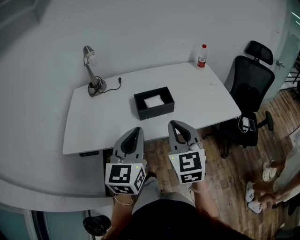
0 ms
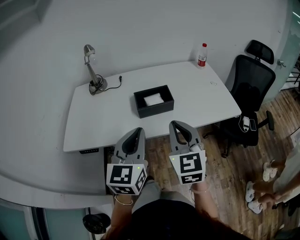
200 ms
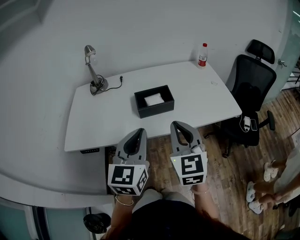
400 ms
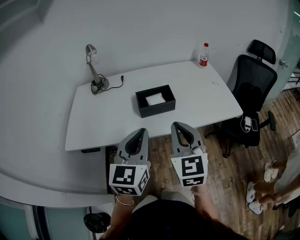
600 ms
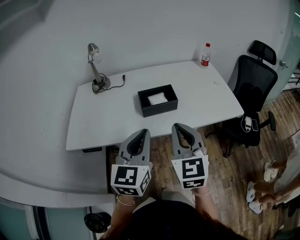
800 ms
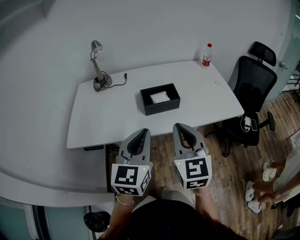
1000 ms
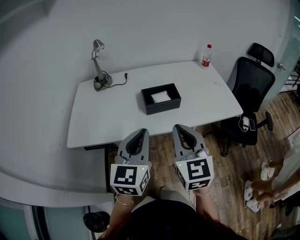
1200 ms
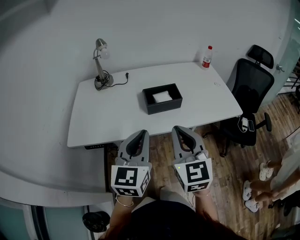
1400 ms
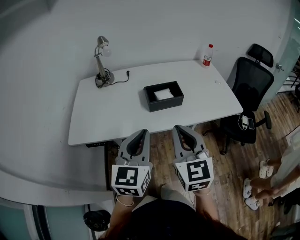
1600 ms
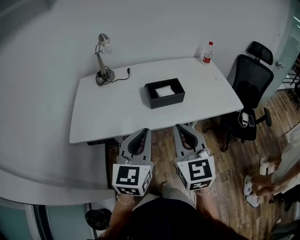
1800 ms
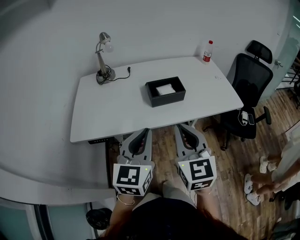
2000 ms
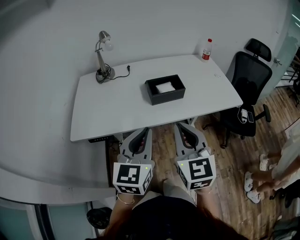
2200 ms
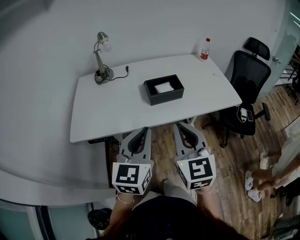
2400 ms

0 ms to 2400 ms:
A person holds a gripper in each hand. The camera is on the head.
0 ms to 1200 ms: The right gripper changes place by some 5 cm.
1200 ms to 2400 ms: The right gripper changes place by approximately 5 cm, while the left gripper shifts by some 5 cm.

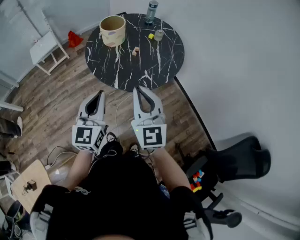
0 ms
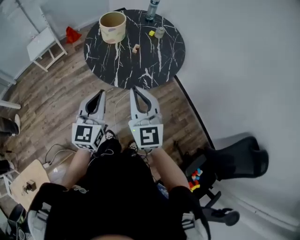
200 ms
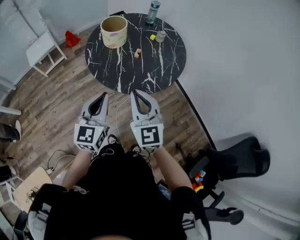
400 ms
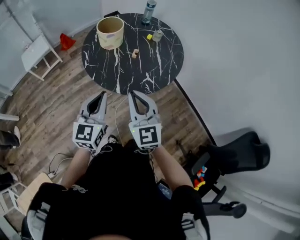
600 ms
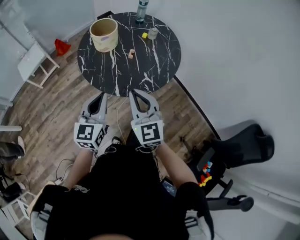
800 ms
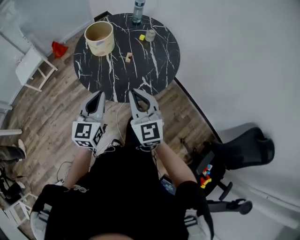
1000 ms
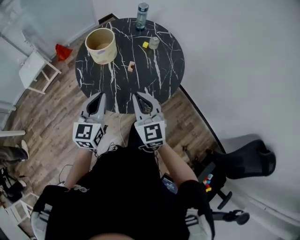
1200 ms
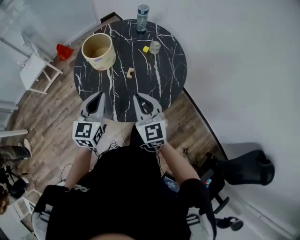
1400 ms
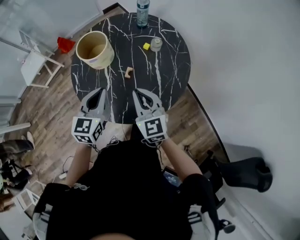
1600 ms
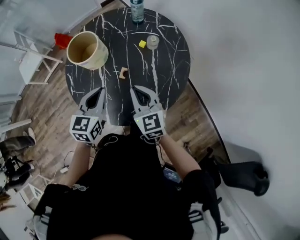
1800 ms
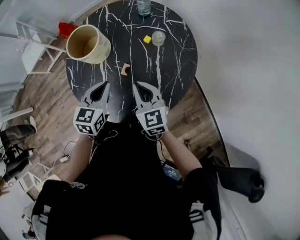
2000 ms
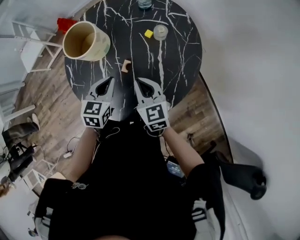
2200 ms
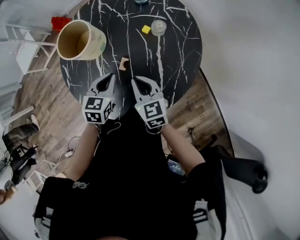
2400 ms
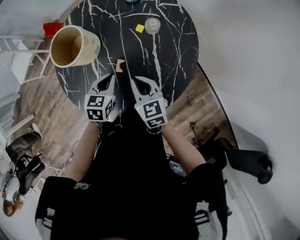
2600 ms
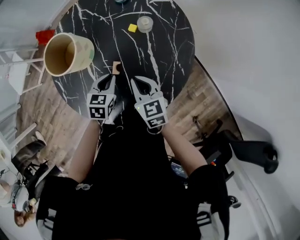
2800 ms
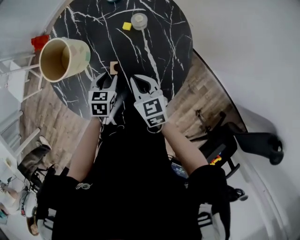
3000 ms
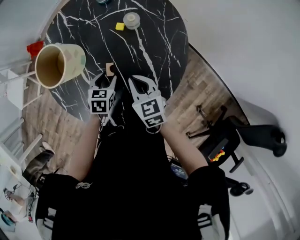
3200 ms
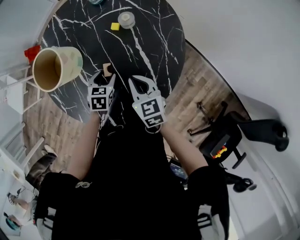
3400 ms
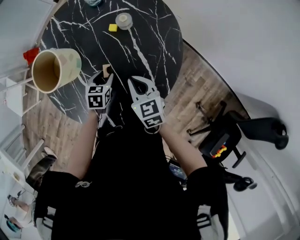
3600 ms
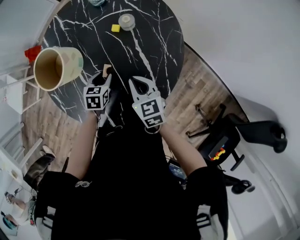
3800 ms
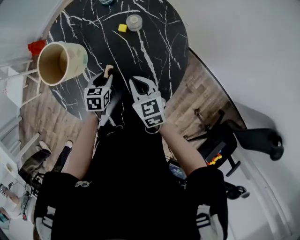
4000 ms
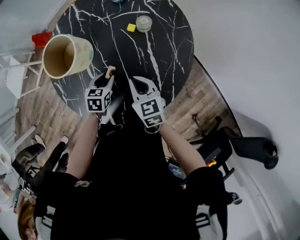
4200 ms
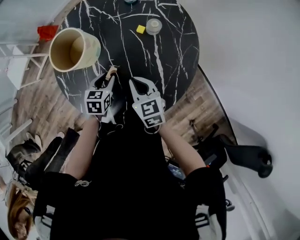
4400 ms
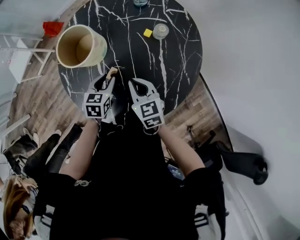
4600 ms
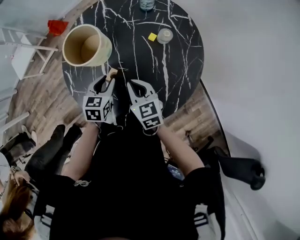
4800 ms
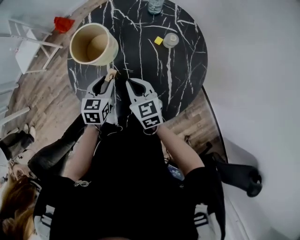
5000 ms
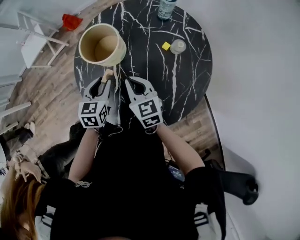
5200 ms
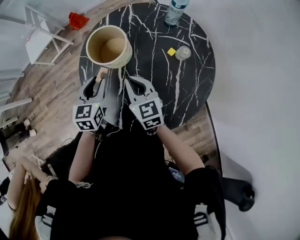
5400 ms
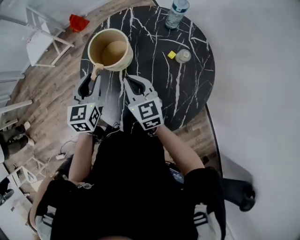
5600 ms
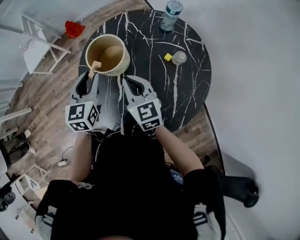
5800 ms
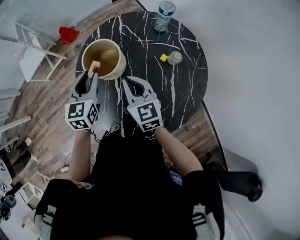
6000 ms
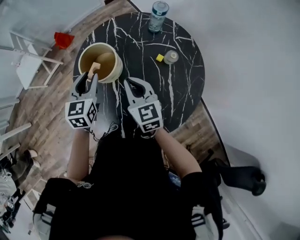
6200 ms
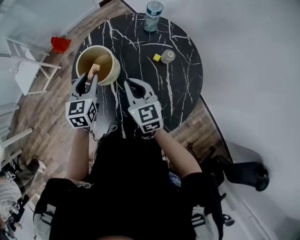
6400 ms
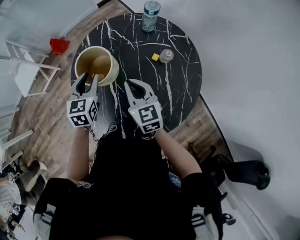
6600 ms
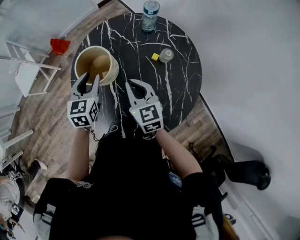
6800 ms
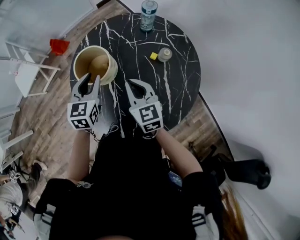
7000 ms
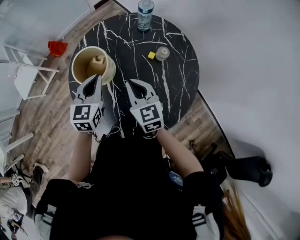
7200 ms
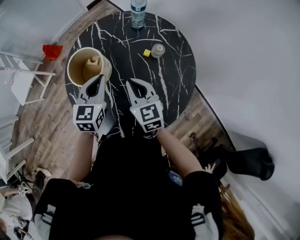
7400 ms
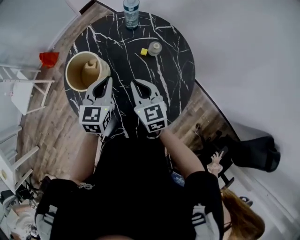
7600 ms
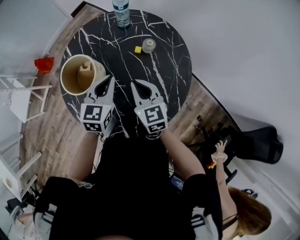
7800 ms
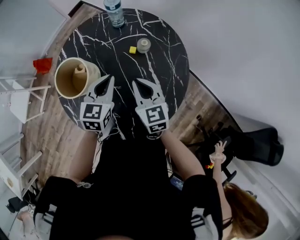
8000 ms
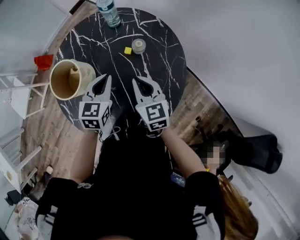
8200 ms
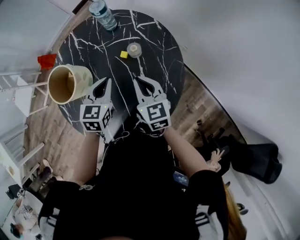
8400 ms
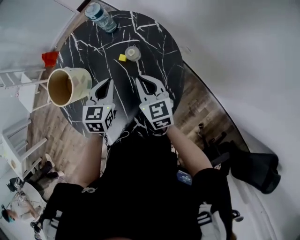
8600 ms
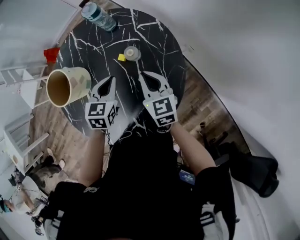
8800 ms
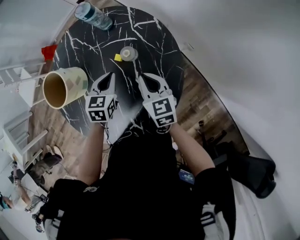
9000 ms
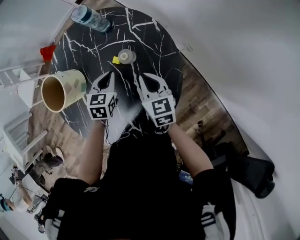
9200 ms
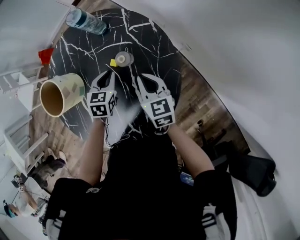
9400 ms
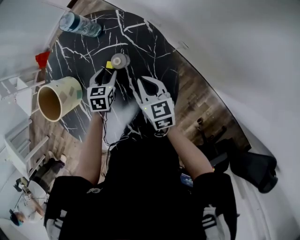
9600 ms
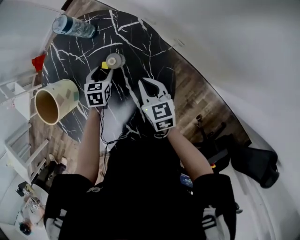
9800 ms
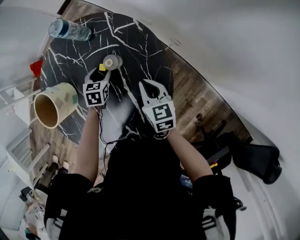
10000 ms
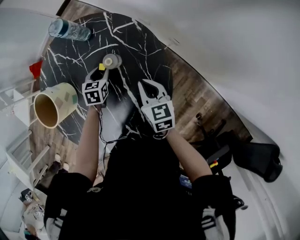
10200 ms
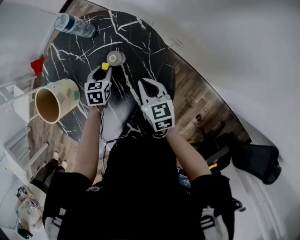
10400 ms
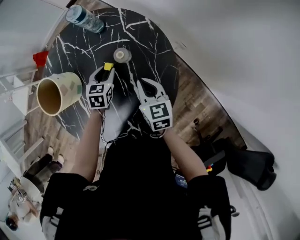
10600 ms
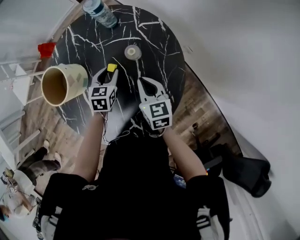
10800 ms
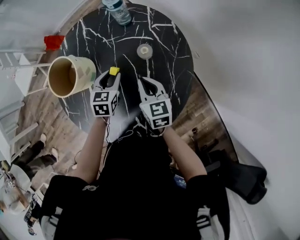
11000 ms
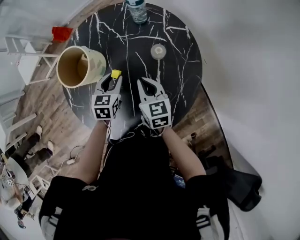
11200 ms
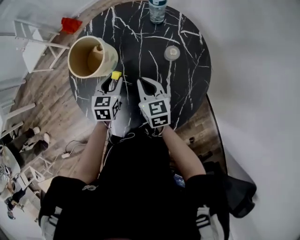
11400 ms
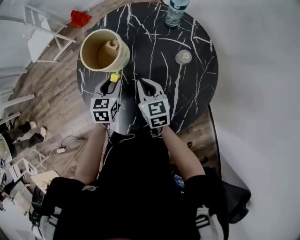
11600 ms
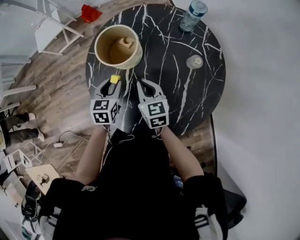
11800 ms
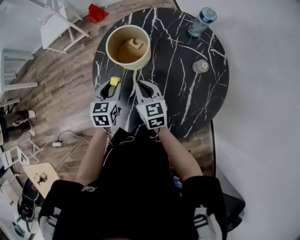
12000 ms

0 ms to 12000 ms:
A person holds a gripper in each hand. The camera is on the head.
0 ms to 1600 ms: The right gripper heads forward and downward, covering about 35 cm, while the left gripper shifts roughly 30 cm forward.
1600 ms to 3000 ms: The two grippers go approximately 20 cm downward and forward. The right gripper turns by roughly 30 degrees. The left gripper angles its fingers downward, by about 30 degrees, and opens up.
3000 ms to 4400 ms: The left gripper goes about 5 cm to the left.
4400 ms to 6000 ms: The left gripper travels upward, to the left and forward by some 25 cm, and swivels about 30 degrees. The right gripper goes roughly 20 cm upward, forward and to the left.
6000 ms to 7600 ms: The left gripper moves to the right, roughly 15 cm, changes its angle by approximately 30 degrees, and closes up, while the right gripper heads to the right, covering some 10 cm.
7600 ms to 9000 ms: The left gripper goes some 20 cm to the right, downward and forward. Meanwhile the right gripper goes about 25 cm to the right, forward and downward.
9000 ms to 10400 ms: The left gripper travels downward by some 10 cm, and opens its fingers.
10400 ms to 12000 ms: The right gripper changes place by about 35 cm, and swivels some 30 degrees. The left gripper changes place by some 40 cm, and turns by approximately 40 degrees.

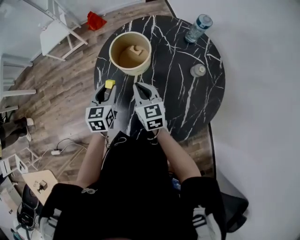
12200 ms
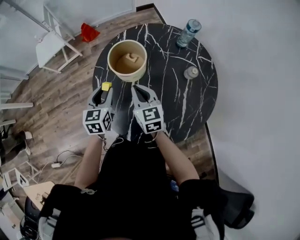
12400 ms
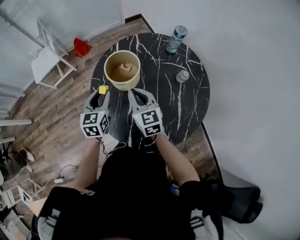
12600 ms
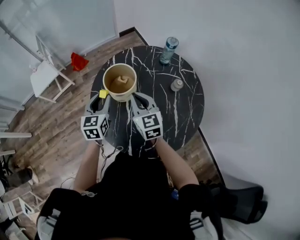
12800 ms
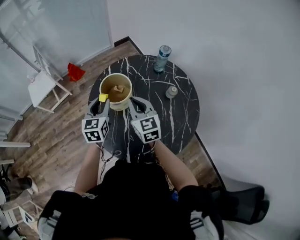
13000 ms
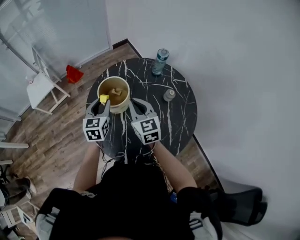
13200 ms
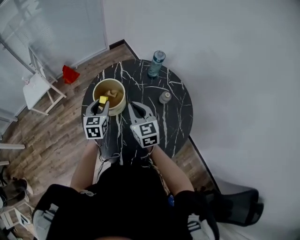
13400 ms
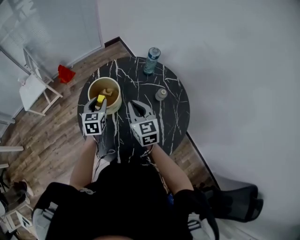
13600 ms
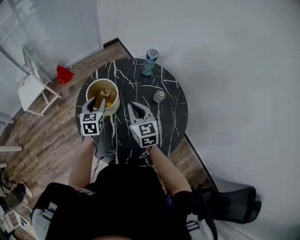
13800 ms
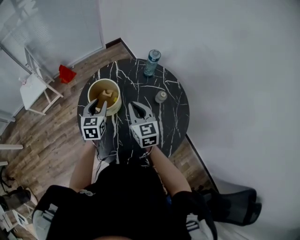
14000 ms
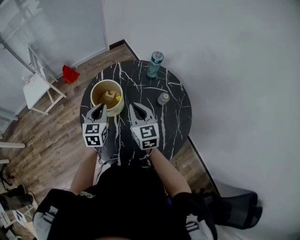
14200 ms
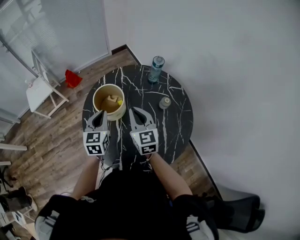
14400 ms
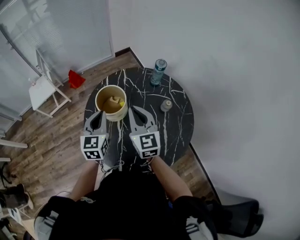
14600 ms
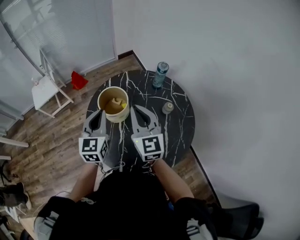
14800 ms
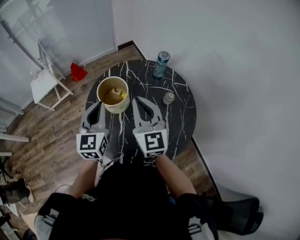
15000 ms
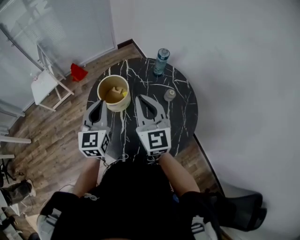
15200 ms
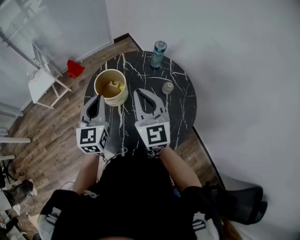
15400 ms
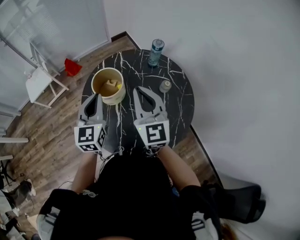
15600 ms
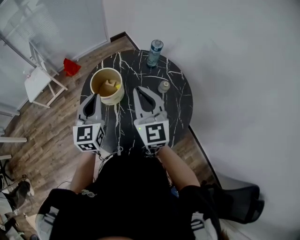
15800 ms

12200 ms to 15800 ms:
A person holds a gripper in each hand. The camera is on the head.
12200 ms to 14000 ms: The right gripper heads upward and to the right, covering roughly 15 cm, while the left gripper moves forward, upward and to the right, approximately 15 cm.
14000 ms to 15800 ms: The left gripper travels upward and backward by approximately 15 cm, and closes. The right gripper goes about 15 cm upward, and changes its angle by some 20 degrees.

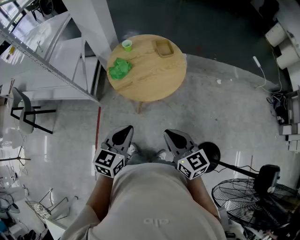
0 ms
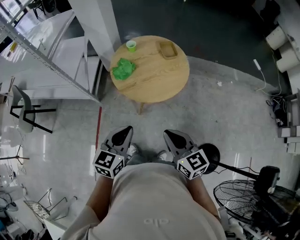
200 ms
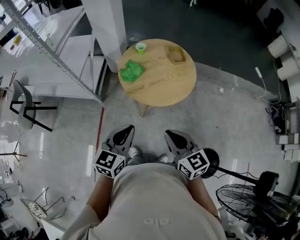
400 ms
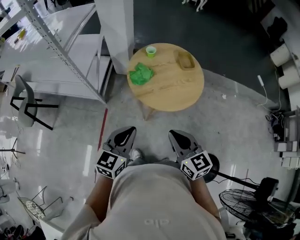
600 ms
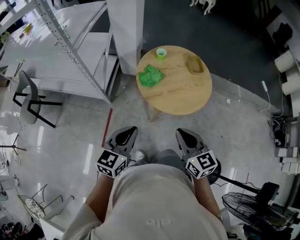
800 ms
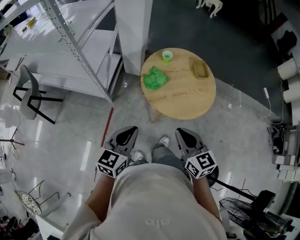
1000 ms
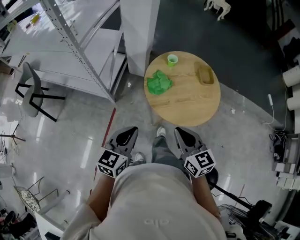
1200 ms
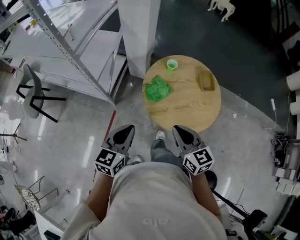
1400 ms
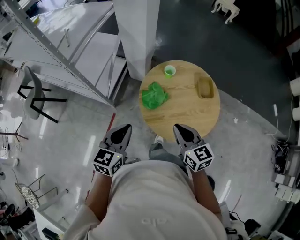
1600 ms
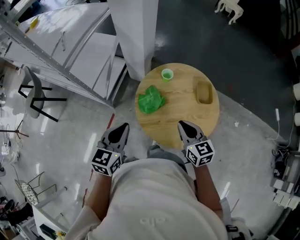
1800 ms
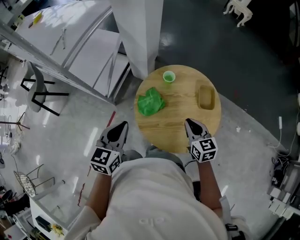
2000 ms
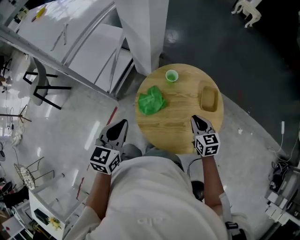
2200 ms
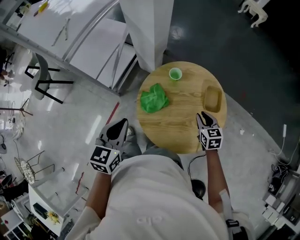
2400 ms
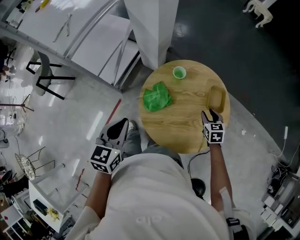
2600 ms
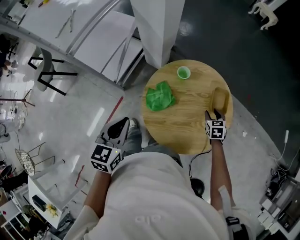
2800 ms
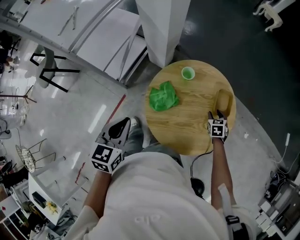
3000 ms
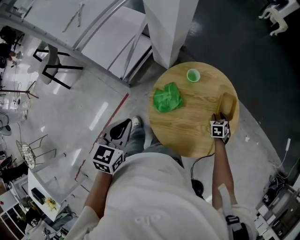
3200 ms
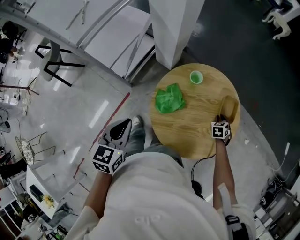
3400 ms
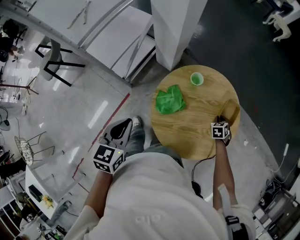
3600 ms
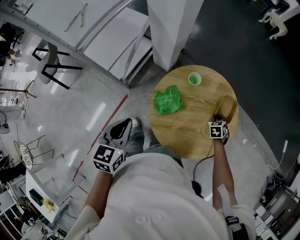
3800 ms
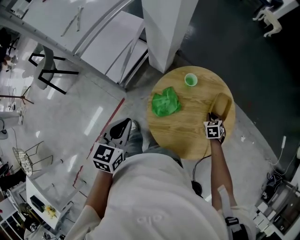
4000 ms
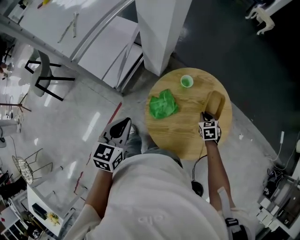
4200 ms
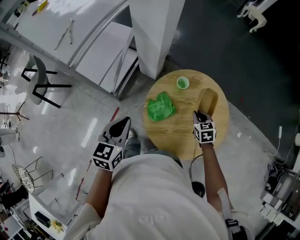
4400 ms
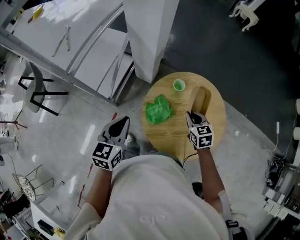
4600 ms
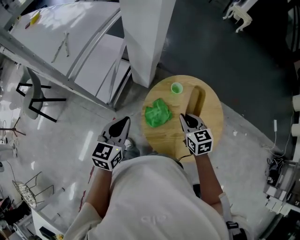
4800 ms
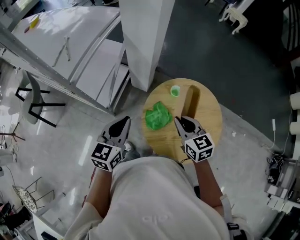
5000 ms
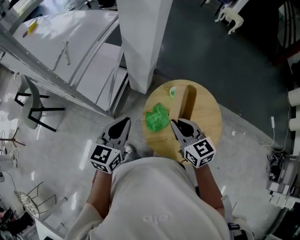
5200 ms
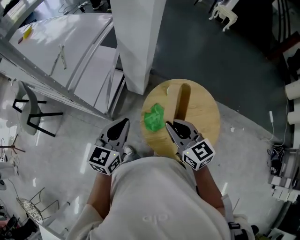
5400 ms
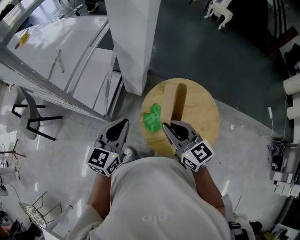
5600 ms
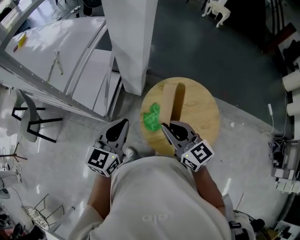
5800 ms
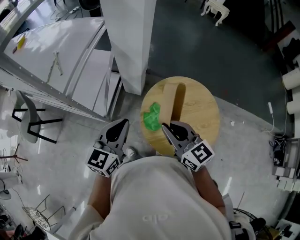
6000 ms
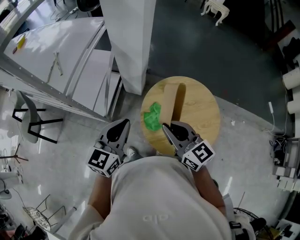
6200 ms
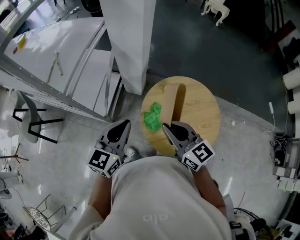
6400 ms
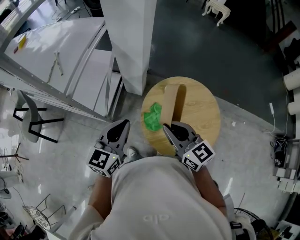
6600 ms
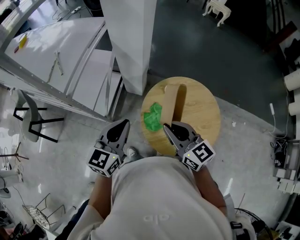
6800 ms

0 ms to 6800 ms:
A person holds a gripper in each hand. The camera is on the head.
0 ms to 1400 ms: The left gripper heads to the left and forward, covering about 30 cm. Meanwhile the right gripper shifts approximately 30 cm forward and to the left.
1400 ms to 2800 ms: The left gripper heads forward, covering about 15 cm, and turns by approximately 20 degrees. Meanwhile the right gripper is displaced to the right, forward and downward by roughly 50 cm, angles its fingers downward, by some 30 degrees, and opens up.
2800 ms to 4000 ms: The right gripper moves approximately 5 cm, and closes its fingers.
4000 ms to 5400 ms: The left gripper is displaced upward and forward by about 10 cm, and turns by about 20 degrees. The right gripper moves upward and to the left, roughly 40 cm, and tips its fingers upward by some 40 degrees.
5400 ms to 6800 ms: The grippers make only small movements.
